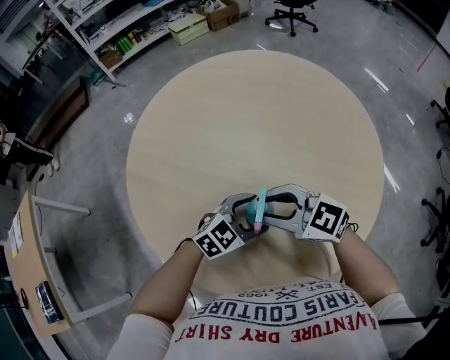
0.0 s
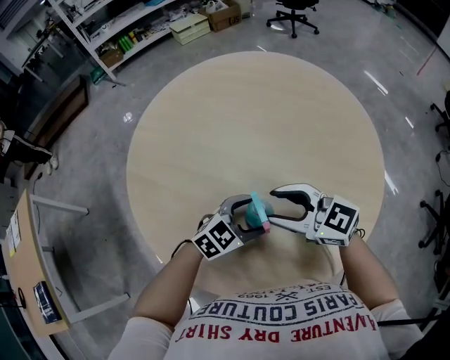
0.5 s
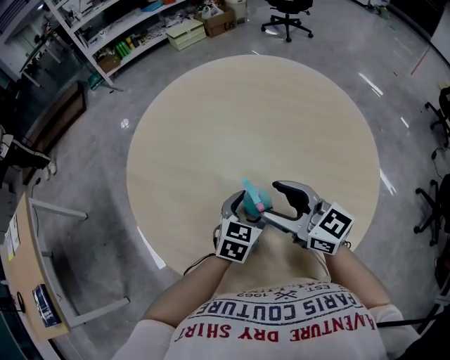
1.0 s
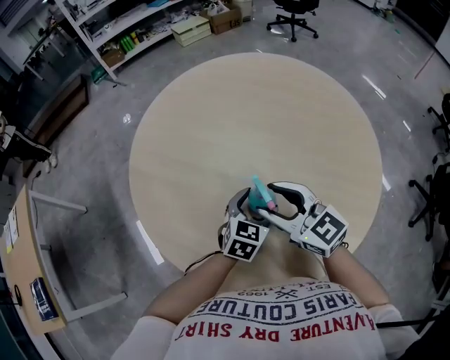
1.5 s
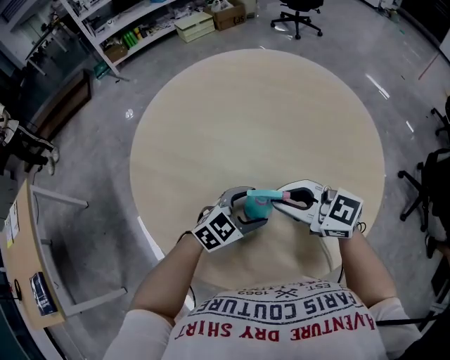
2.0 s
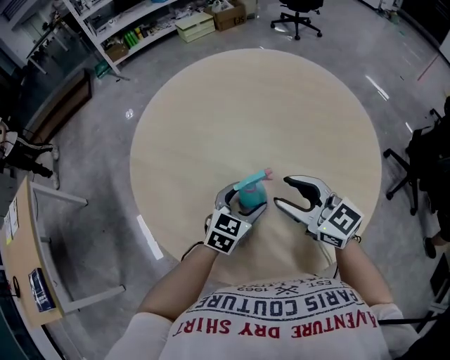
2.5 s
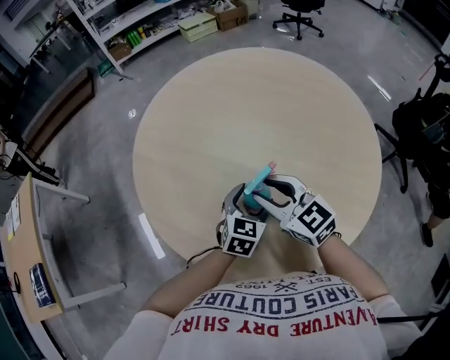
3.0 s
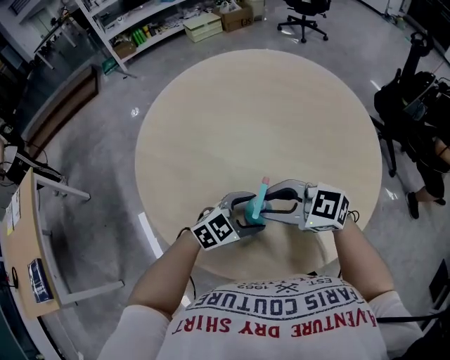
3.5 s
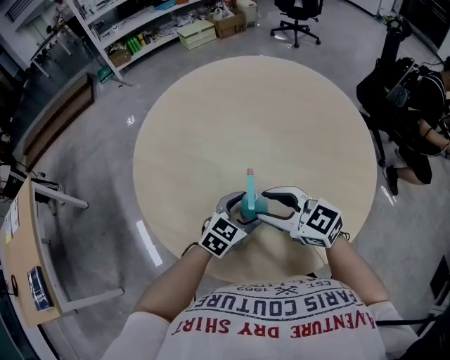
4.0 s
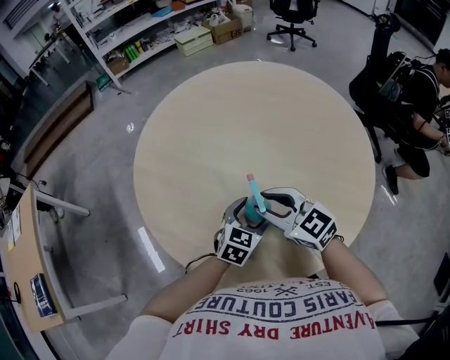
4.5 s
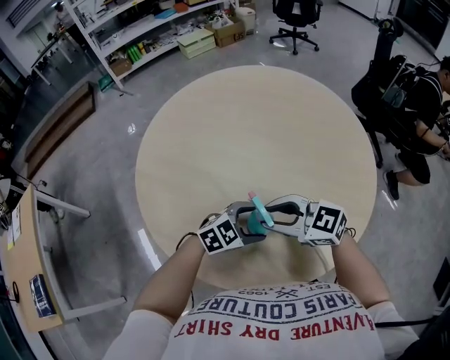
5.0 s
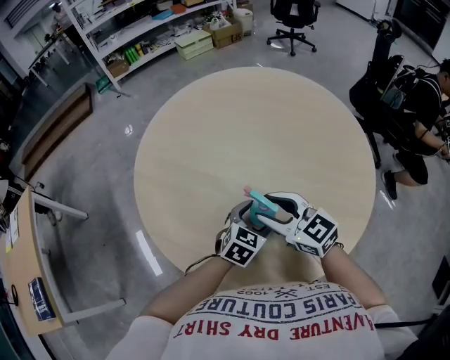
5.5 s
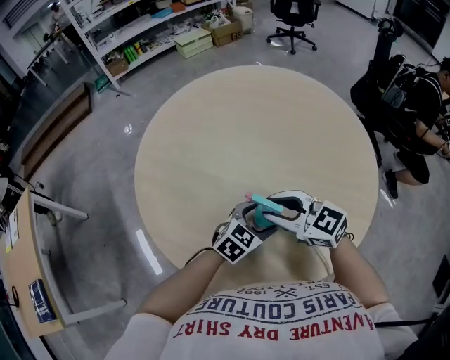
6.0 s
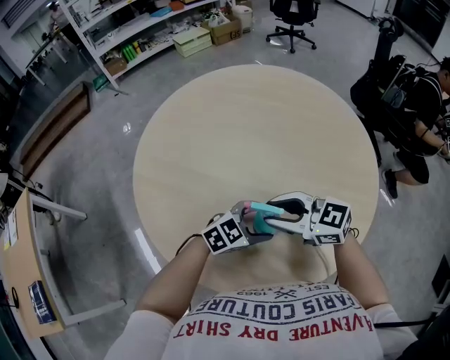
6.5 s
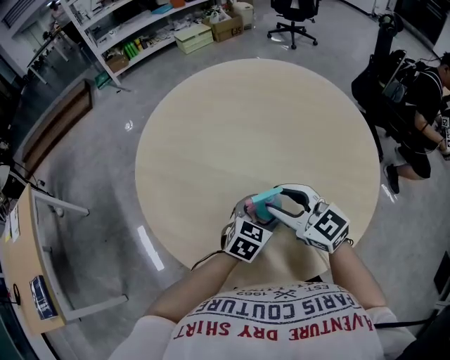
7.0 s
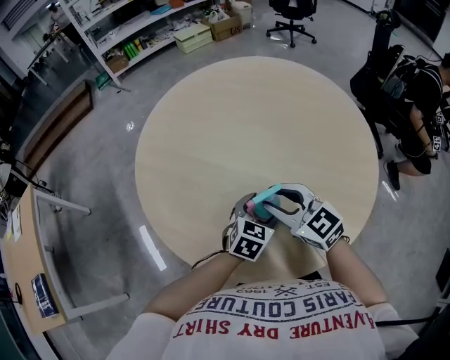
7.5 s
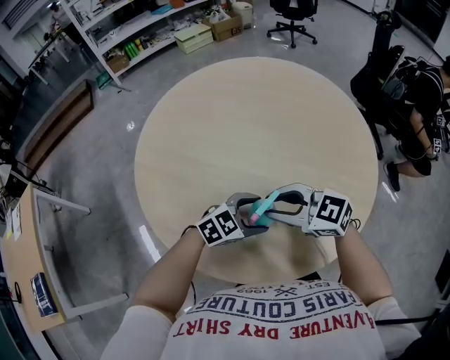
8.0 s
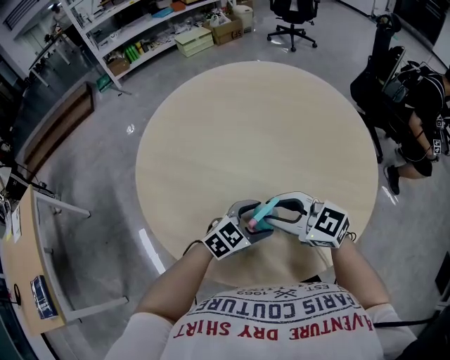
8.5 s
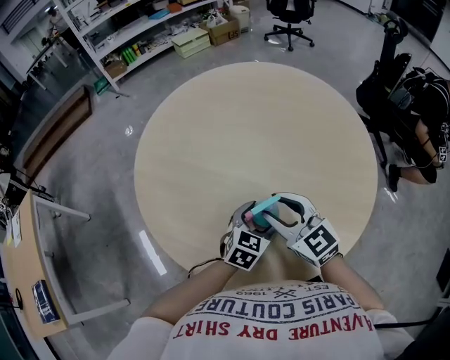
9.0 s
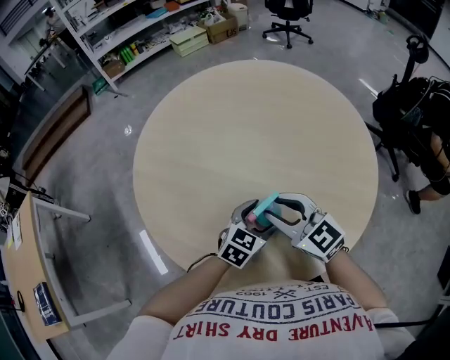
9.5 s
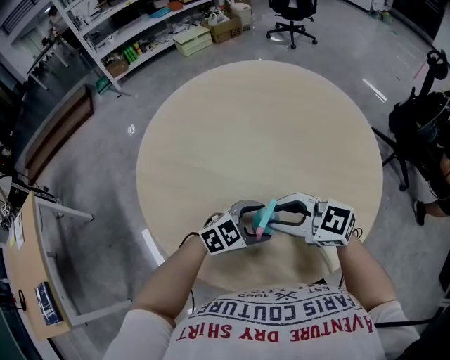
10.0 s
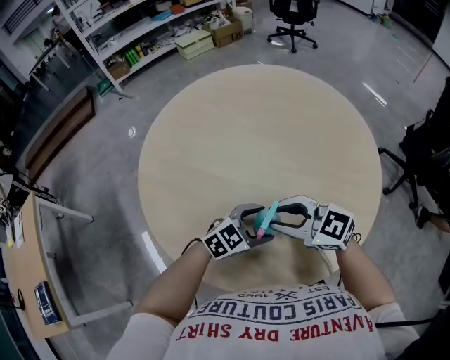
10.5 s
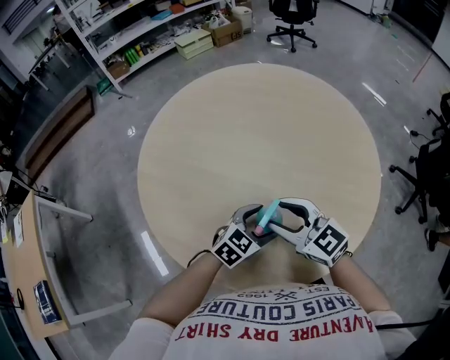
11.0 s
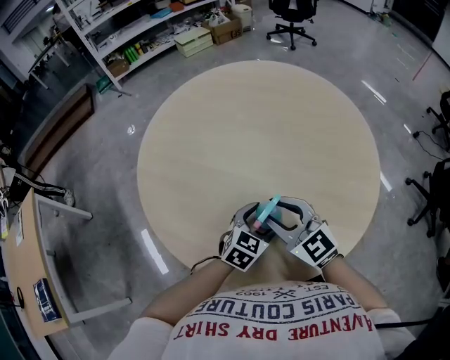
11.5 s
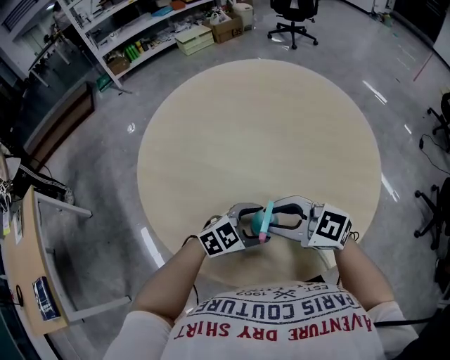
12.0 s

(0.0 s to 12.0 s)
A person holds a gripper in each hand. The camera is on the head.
0.0 s - 2.0 s: The right gripper opens, then closes once more.
2.0 s - 4.0 s: The right gripper opens up.
6.0 s - 8.0 s: The left gripper swivels some 20 degrees.

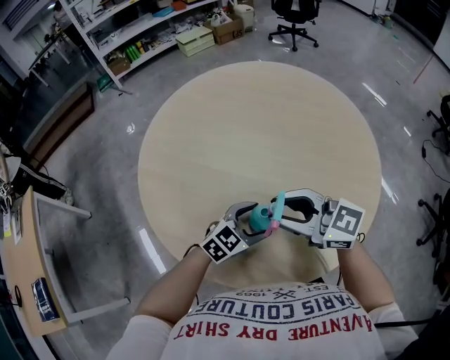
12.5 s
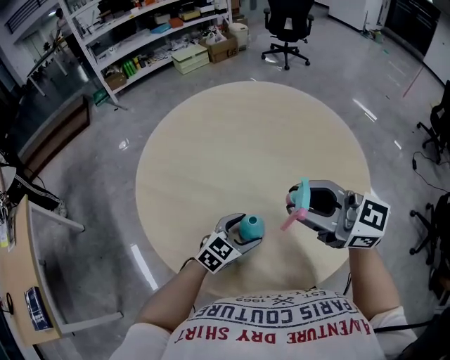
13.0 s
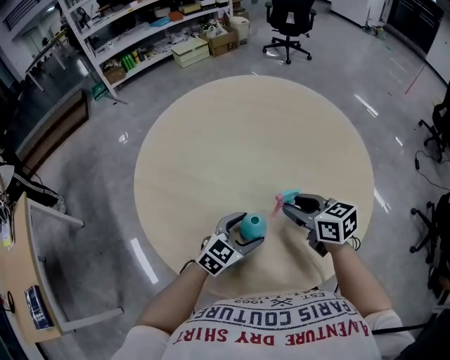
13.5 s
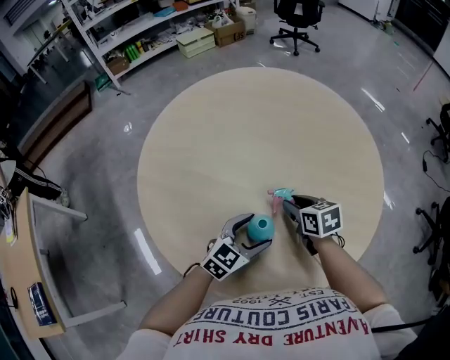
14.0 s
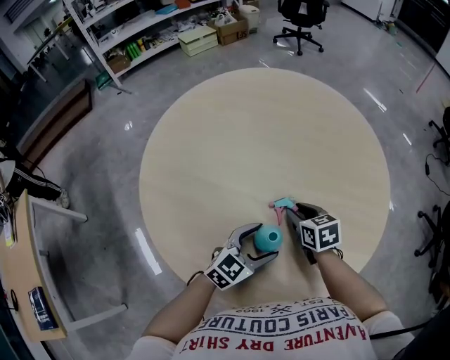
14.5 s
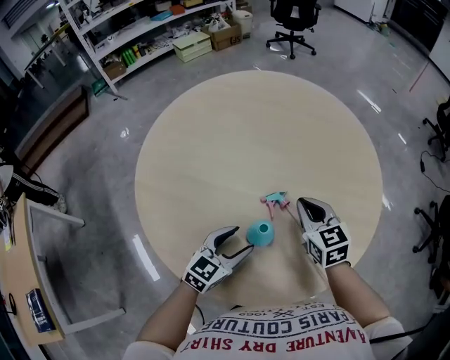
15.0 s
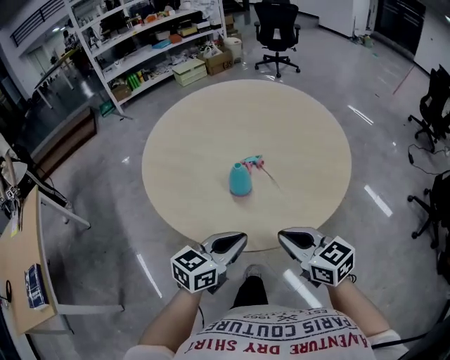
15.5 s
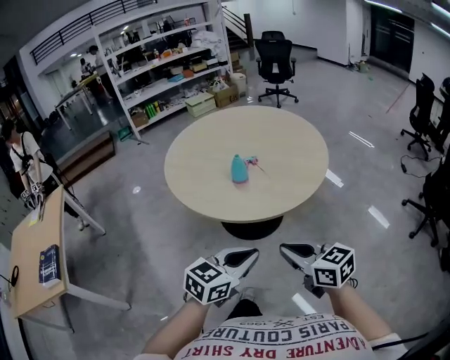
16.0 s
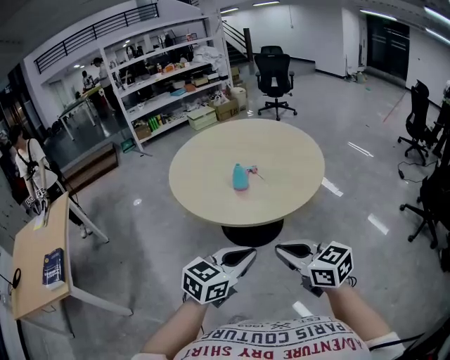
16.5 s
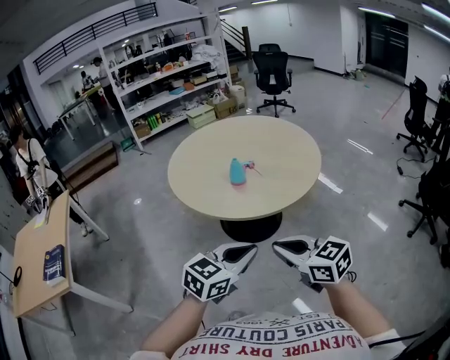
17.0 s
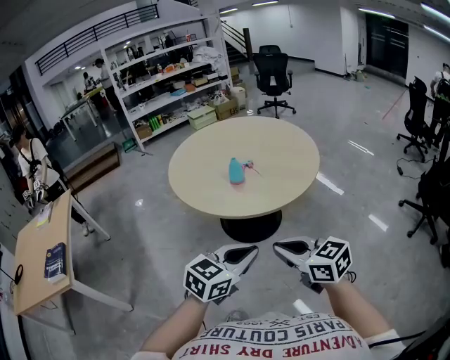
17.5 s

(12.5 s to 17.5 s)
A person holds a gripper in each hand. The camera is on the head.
12.5 s - 15.0 s: The left gripper ends up roughly 5 cm from where it was. Meanwhile the right gripper moves up and down over some 30 cm, changing direction 2 times, turns by roughly 50 degrees, and closes its fingers.
15.0 s - 17.5 s: The pair of grippers is taken backward, some 60 cm. The right gripper changes its angle by approximately 30 degrees, while the left gripper shifts about 20 cm upward, and closes its fingers.

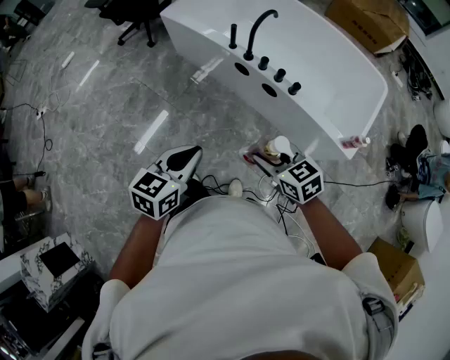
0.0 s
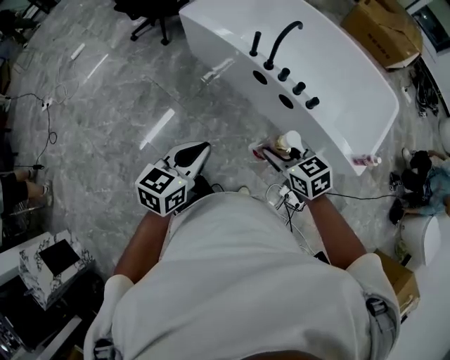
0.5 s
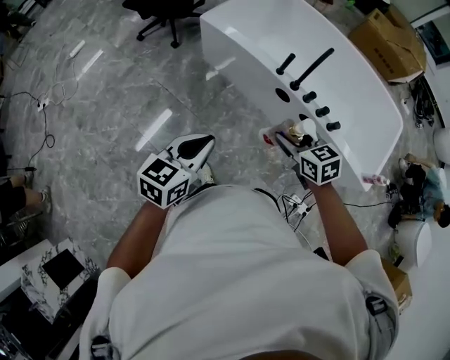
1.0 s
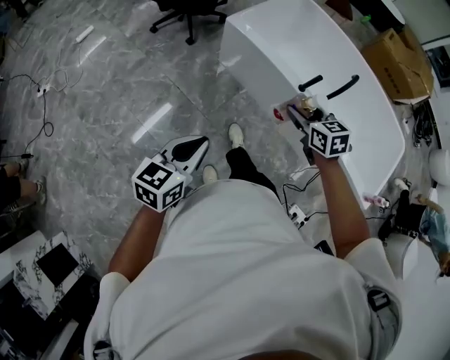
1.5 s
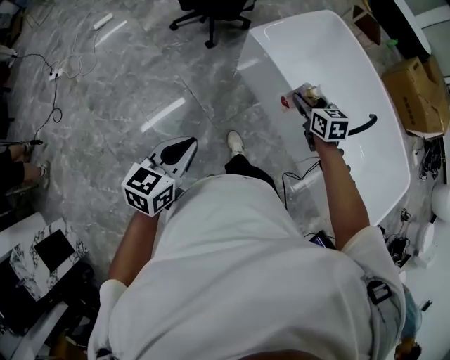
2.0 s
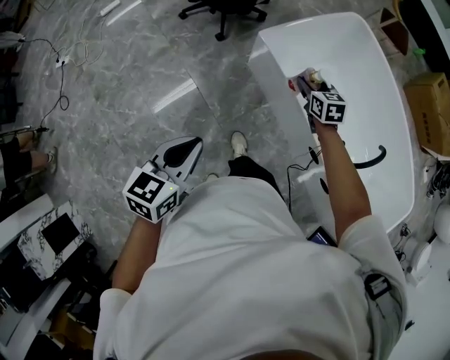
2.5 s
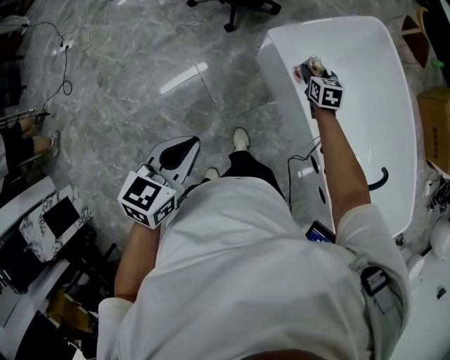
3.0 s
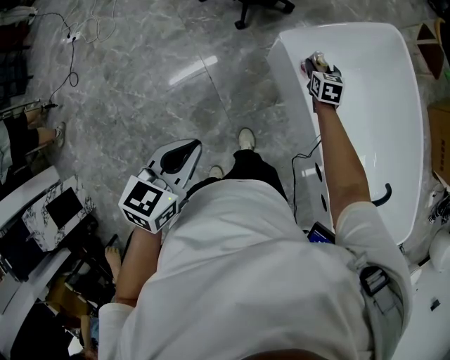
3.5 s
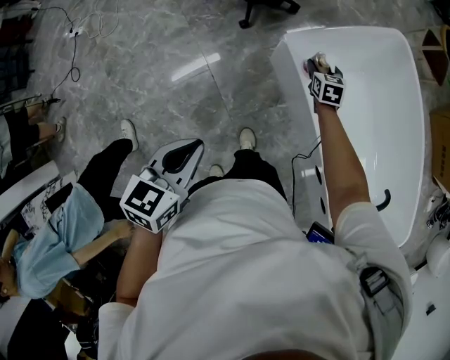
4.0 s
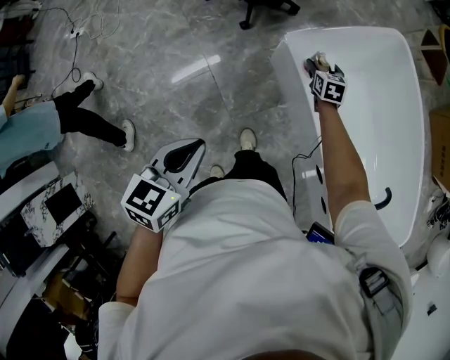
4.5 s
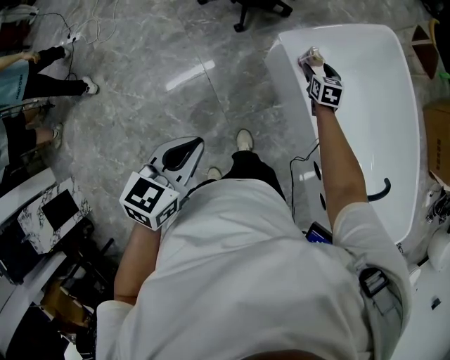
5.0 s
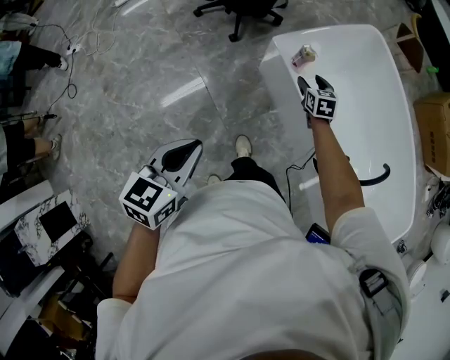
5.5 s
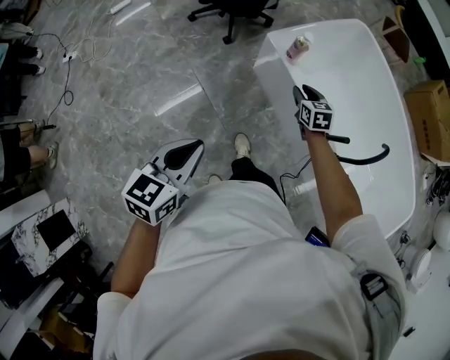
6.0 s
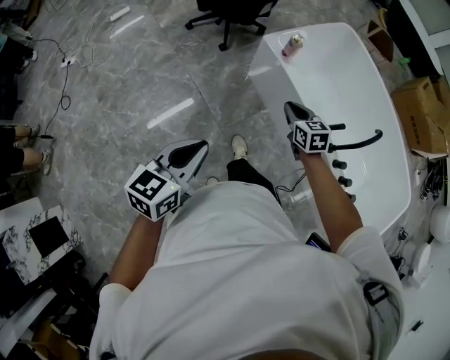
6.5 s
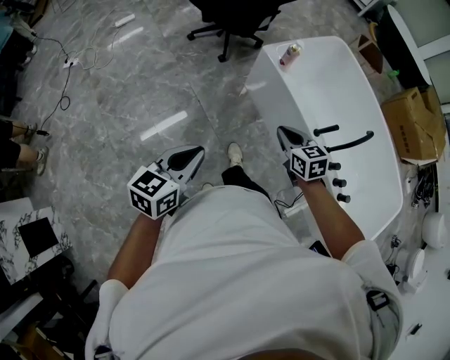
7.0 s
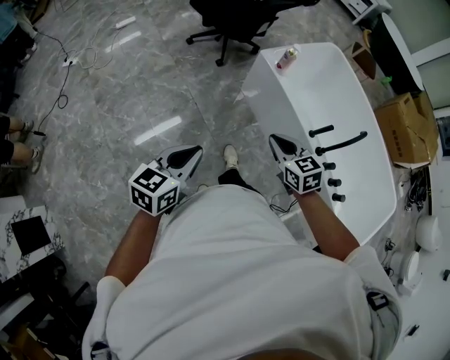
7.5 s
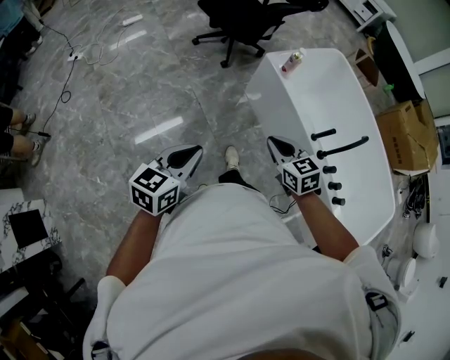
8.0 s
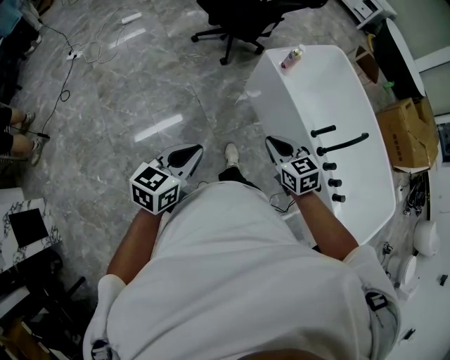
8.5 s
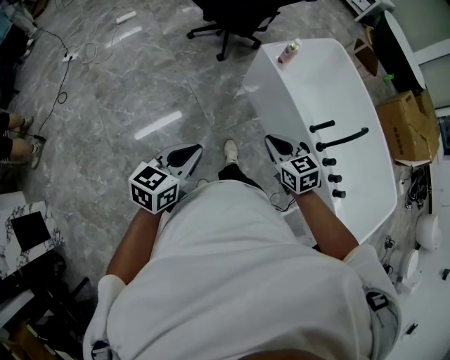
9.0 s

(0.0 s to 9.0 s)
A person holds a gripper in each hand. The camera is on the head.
0.0 s - 2.0 s: The pair of grippers is taken forward and to the left, some 50 cm.
2.0 s - 4.5 s: The left gripper travels forward by some 20 cm. The right gripper moves forward and downward, approximately 40 cm.
4.5 s - 7.0 s: The left gripper moves backward, about 30 cm. Meanwhile the right gripper shifts about 50 cm backward, and closes.
7.0 s - 9.0 s: The right gripper heads backward, covering some 10 cm.

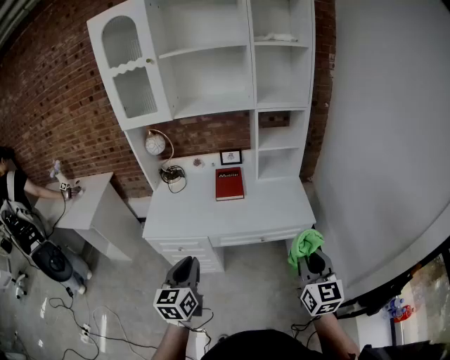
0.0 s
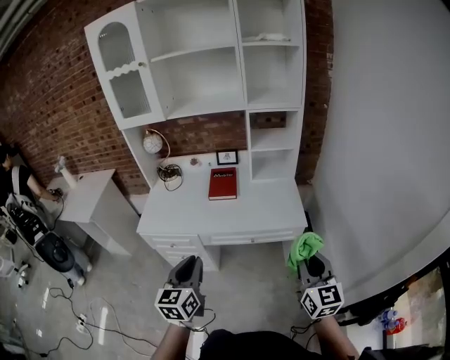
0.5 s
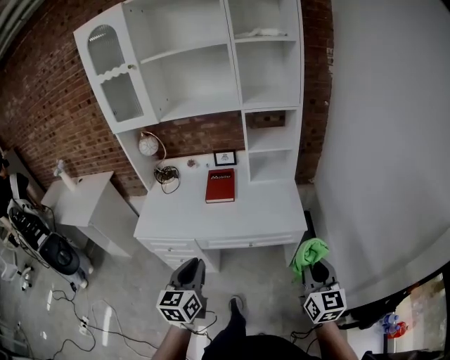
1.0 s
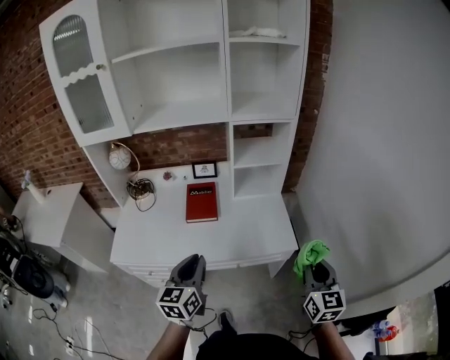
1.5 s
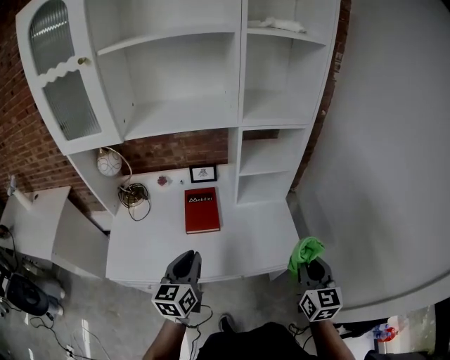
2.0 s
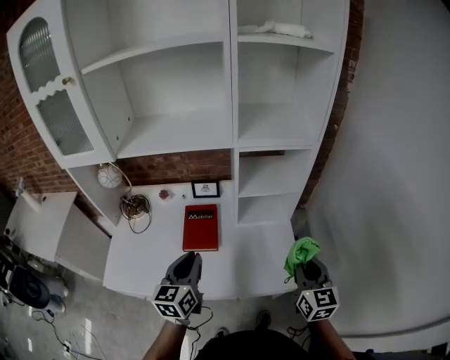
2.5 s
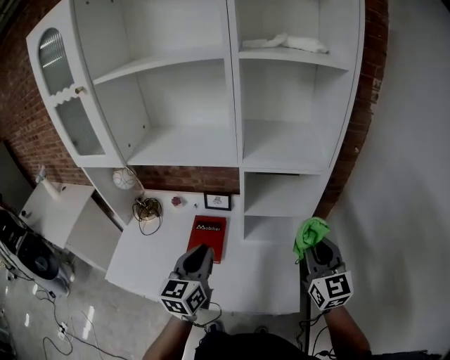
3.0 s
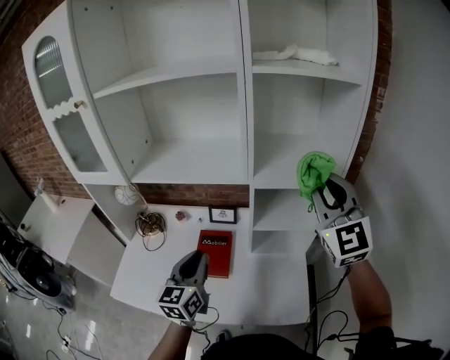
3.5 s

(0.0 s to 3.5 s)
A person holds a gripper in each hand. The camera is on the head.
0.0 s - 2.0 s: The grippers both shift forward by approximately 30 cm.
2.0 s - 3.5 s: The left gripper is displaced forward and upward by some 20 cm. The right gripper travels forward and upward by some 40 cm, and swivels about 40 degrees.
